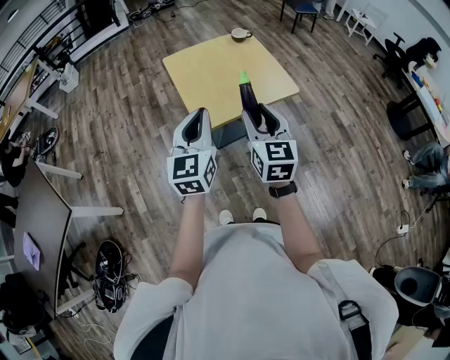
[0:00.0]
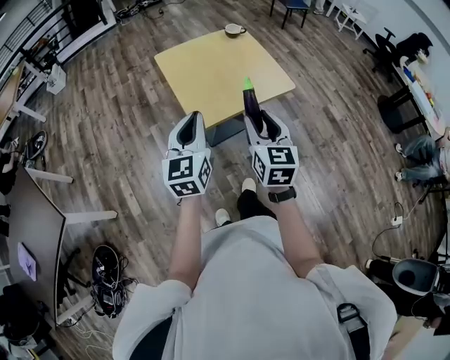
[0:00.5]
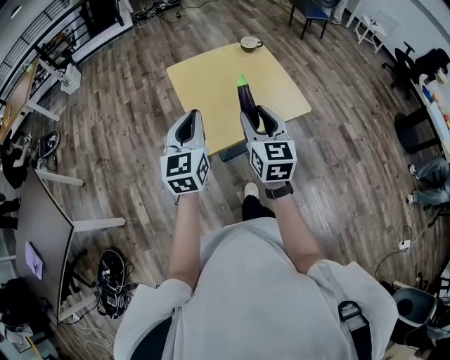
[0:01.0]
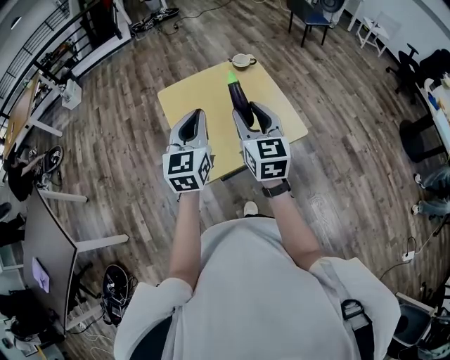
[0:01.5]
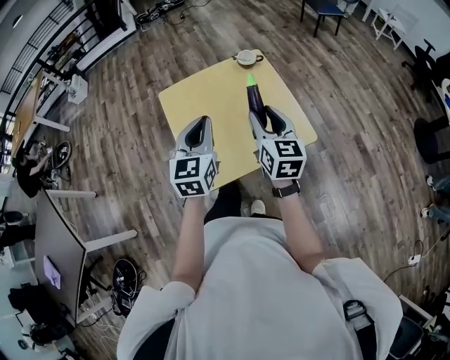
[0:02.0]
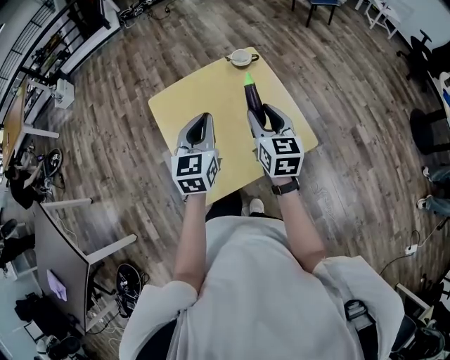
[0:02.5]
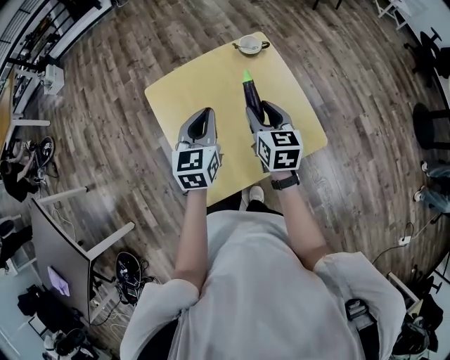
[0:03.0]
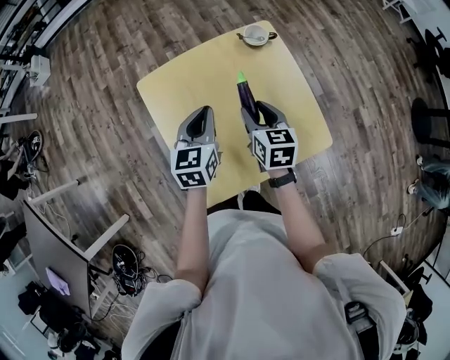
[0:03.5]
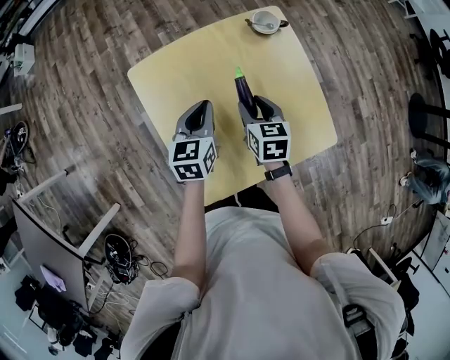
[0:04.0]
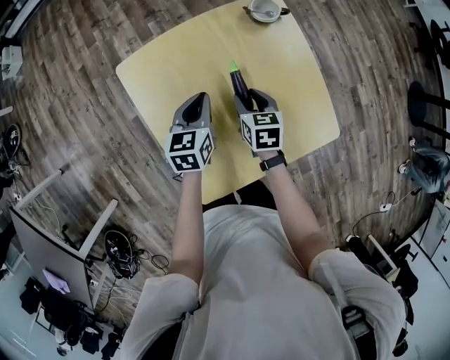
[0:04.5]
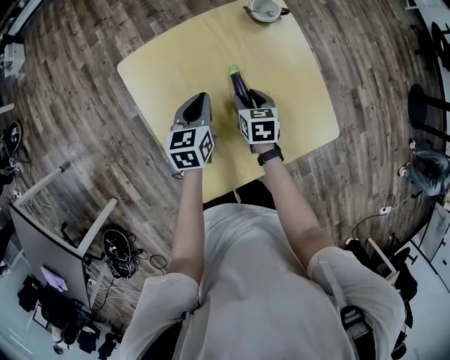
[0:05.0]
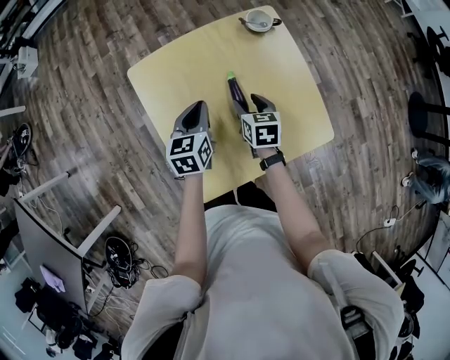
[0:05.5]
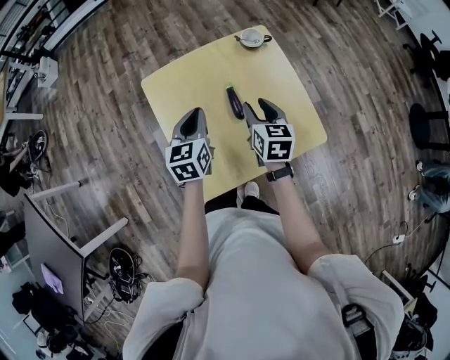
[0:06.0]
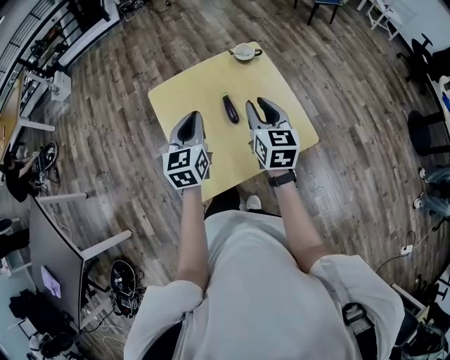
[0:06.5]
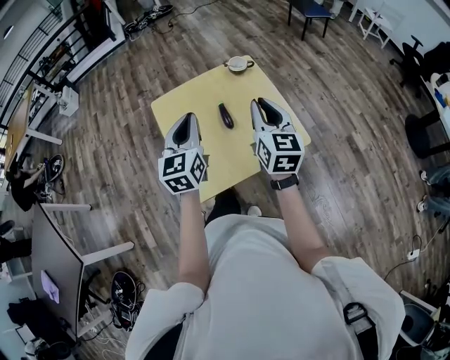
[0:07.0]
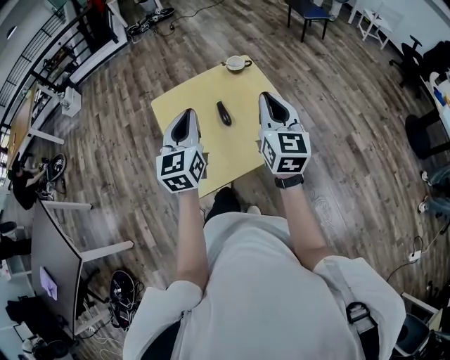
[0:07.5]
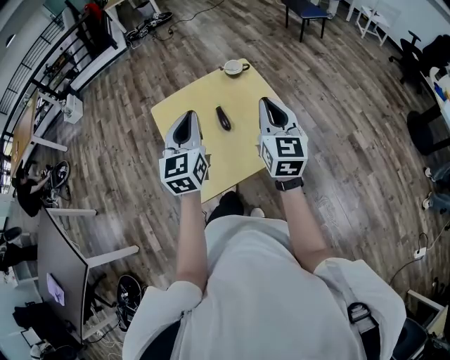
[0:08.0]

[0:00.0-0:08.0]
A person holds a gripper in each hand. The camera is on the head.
0:00.0 to 0:02.0: The grippers both shift forward by roughly 30 cm.
0:02.0 to 0:04.0: The right gripper moves downward, forward and to the left, some 30 cm, and angles its fingers downward, by approximately 30 degrees, while the left gripper goes some 30 cm downward and forward, and changes its angle by some 30 degrees.
0:04.0 to 0:06.0: The right gripper goes some 10 cm upward. The left gripper heads upward and backward, covering approximately 10 cm.
0:06.0 to 0:08.0: The right gripper heads upward, backward and to the right, covering about 25 cm, swivels some 30 degrees, and closes its fingers, while the left gripper goes some 20 cm upward and backward, and changes its angle by about 20 degrees.

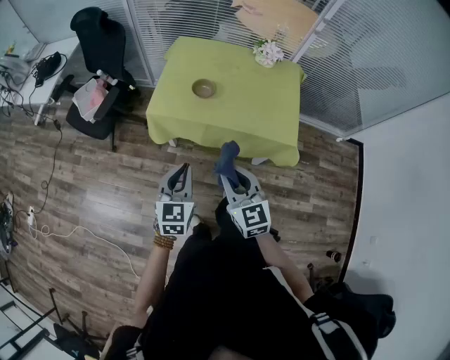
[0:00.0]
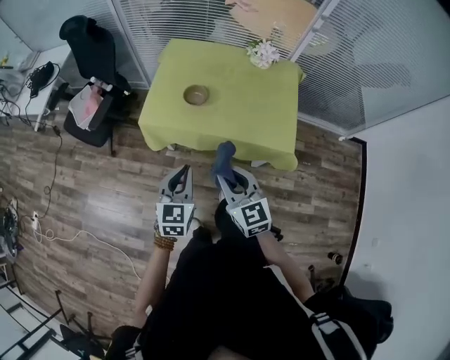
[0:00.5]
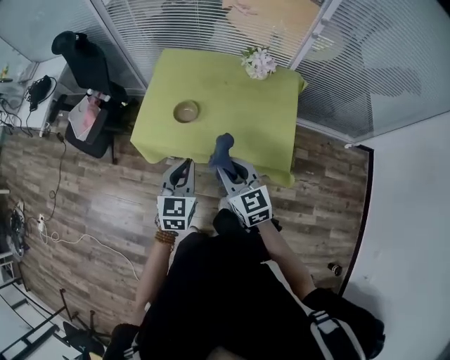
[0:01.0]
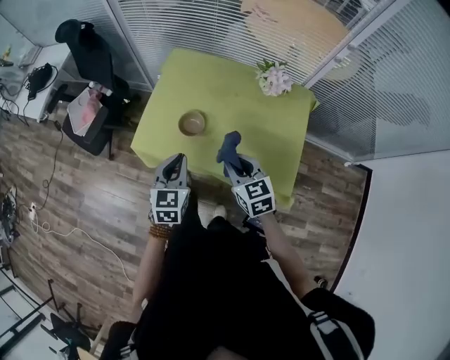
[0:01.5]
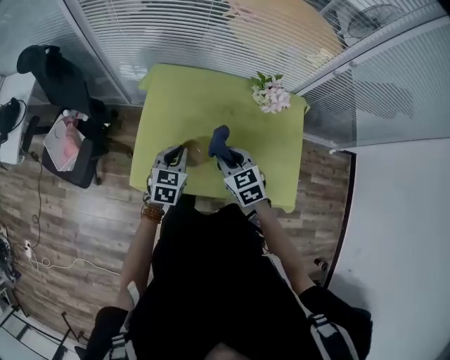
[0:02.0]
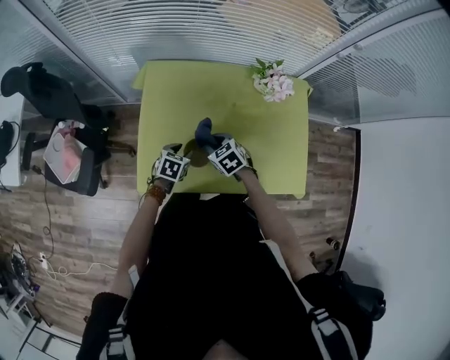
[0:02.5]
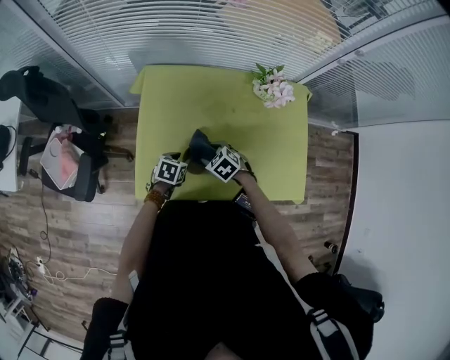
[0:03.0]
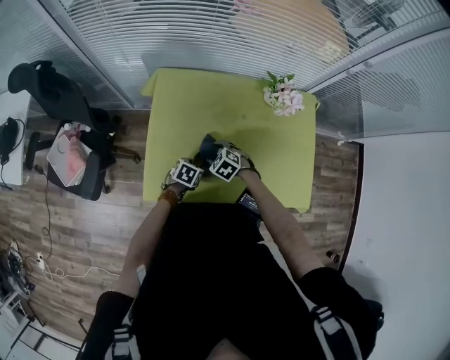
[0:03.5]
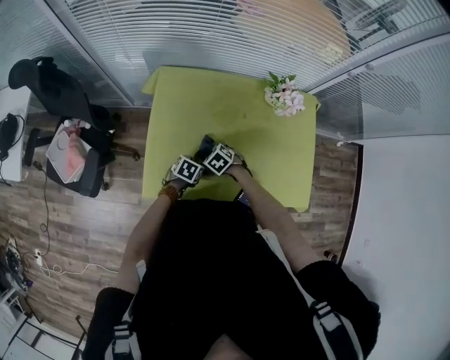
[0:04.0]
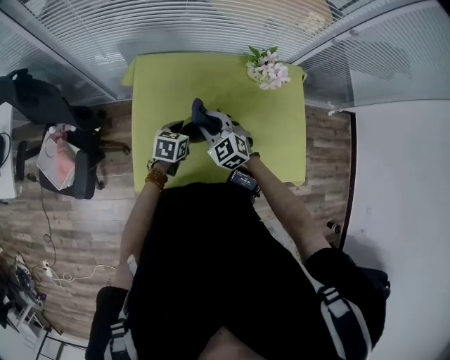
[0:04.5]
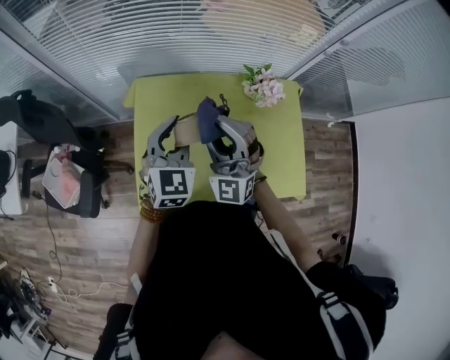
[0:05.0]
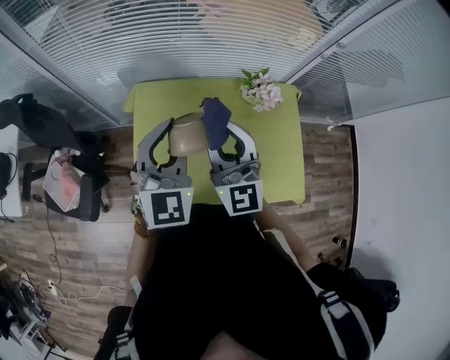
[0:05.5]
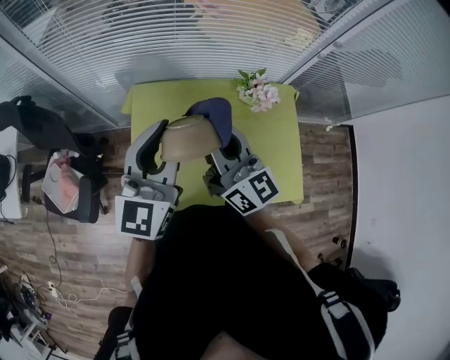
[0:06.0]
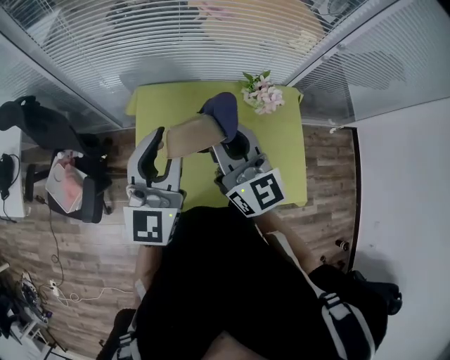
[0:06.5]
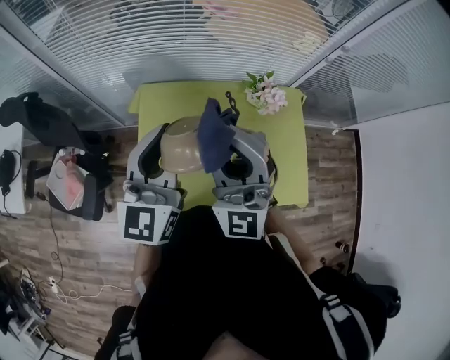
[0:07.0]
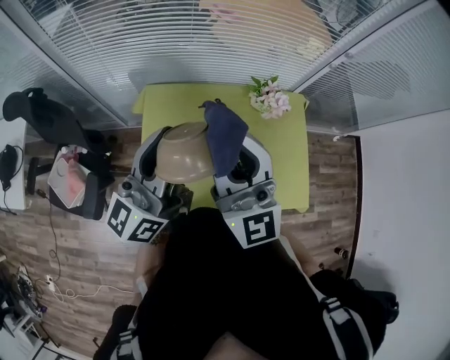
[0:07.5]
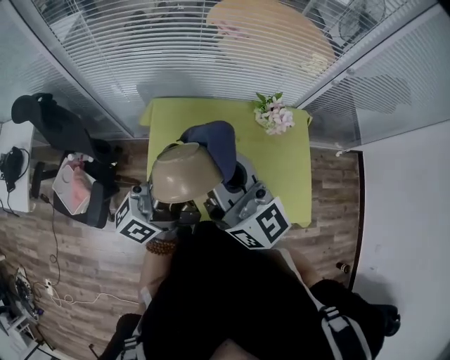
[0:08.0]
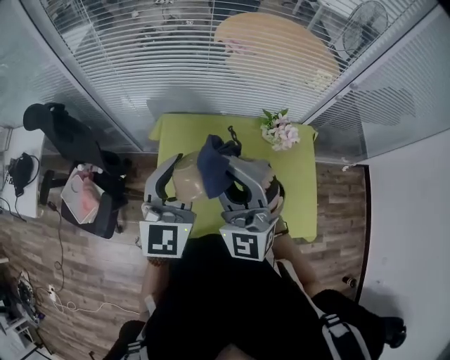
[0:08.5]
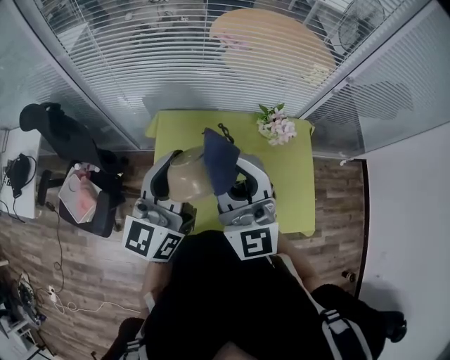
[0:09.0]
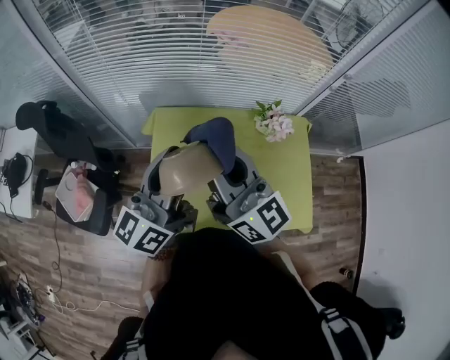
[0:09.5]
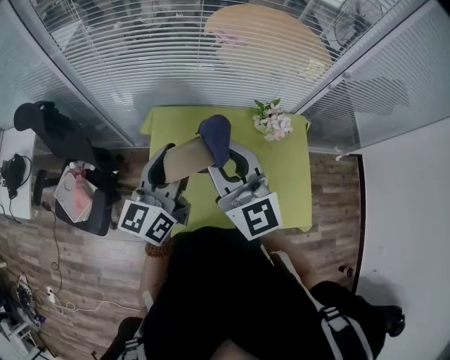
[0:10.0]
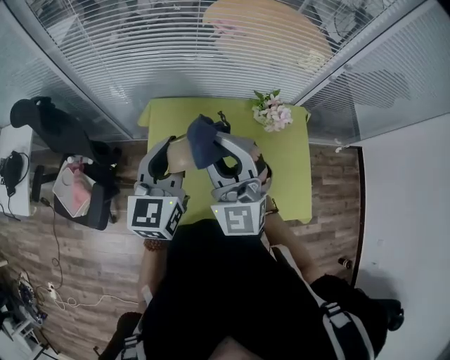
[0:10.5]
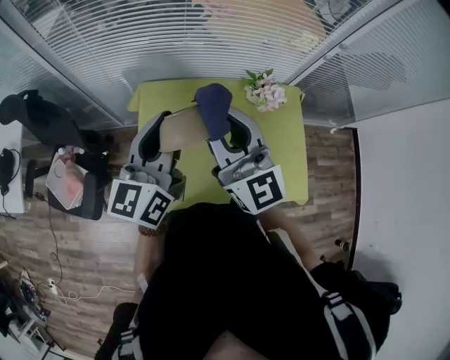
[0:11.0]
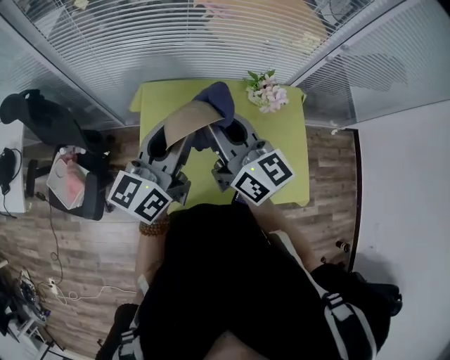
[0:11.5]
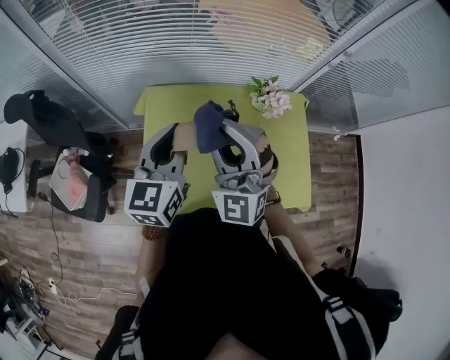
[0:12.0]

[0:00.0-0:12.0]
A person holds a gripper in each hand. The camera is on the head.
0:00.0 to 0:02.0: The pair of grippers is taken forward, some 40 cm. The right gripper swivels about 20 degrees.
0:02.0 to 0:04.0: The grippers both shift downward by some 25 cm. The left gripper changes its angle by roughly 40 degrees, and opens up. Meanwhile the right gripper rotates about 30 degrees, and opens, then closes again.
0:04.0 to 0:06.0: The two grippers go roughly 50 cm upward. The left gripper tilts its fingers approximately 70 degrees upward. Meanwhile the right gripper tips its fingers upward by about 80 degrees.
0:06.0 to 0:08.0: The left gripper changes place by approximately 5 cm, and rolls counterclockwise, seen from behind, by roughly 50 degrees; the right gripper travels upward and to the left by roughly 10 cm.
0:08.0 to 0:10.0: The left gripper is displaced downward by some 5 cm, turns by roughly 40 degrees, and opens up. Meanwhile the right gripper turns by about 30 degrees.
0:10.0 to 0:12.0: The left gripper swivels approximately 20 degrees, and closes its fingers, while the right gripper rotates around the line of its fingers by about 40 degrees, counterclockwise from behind.

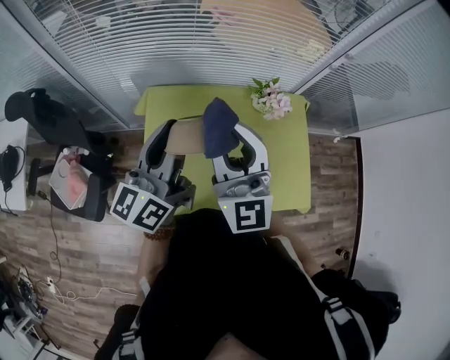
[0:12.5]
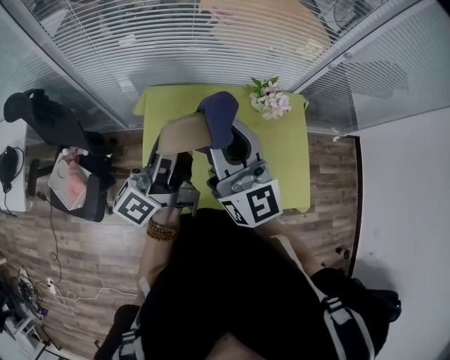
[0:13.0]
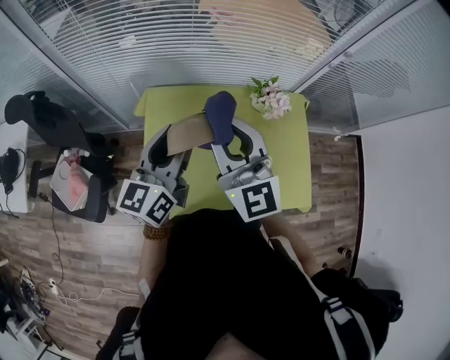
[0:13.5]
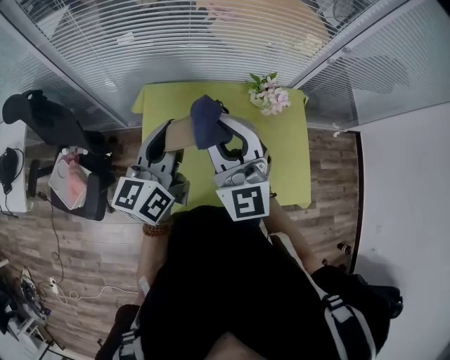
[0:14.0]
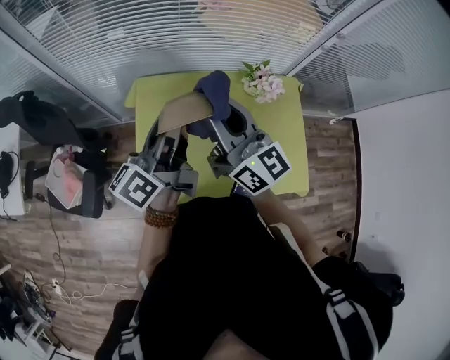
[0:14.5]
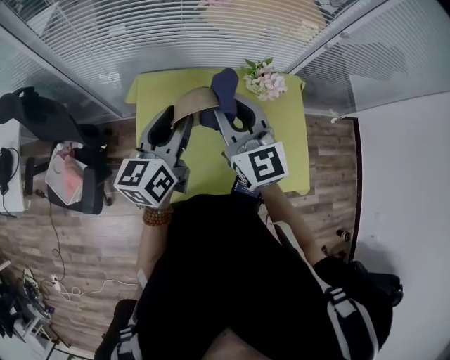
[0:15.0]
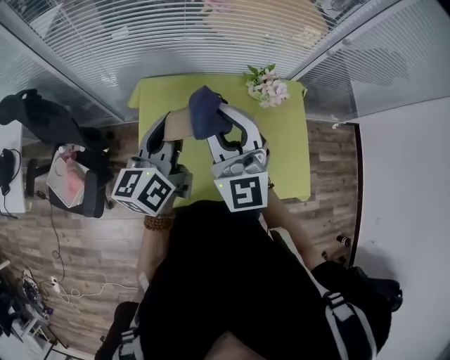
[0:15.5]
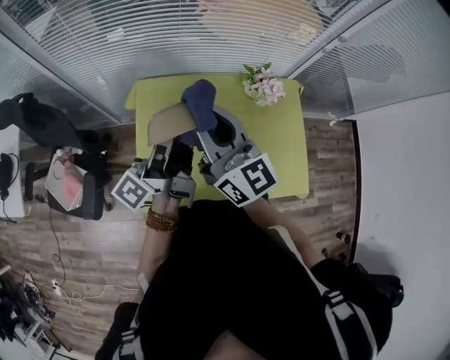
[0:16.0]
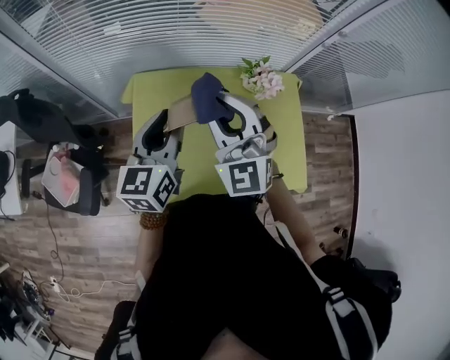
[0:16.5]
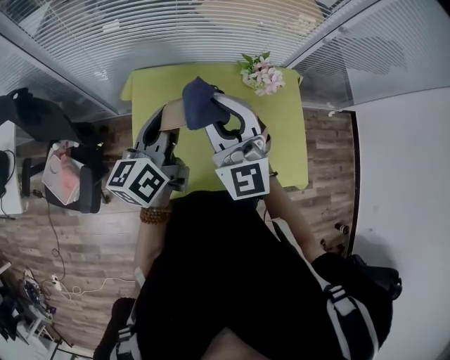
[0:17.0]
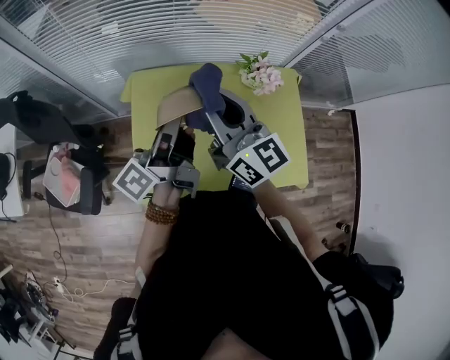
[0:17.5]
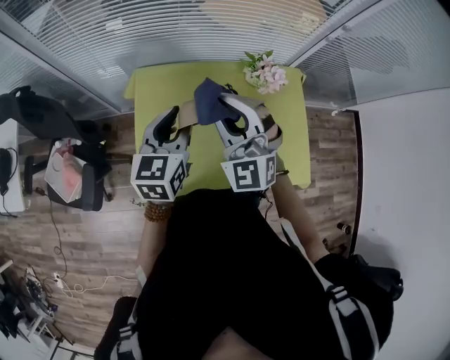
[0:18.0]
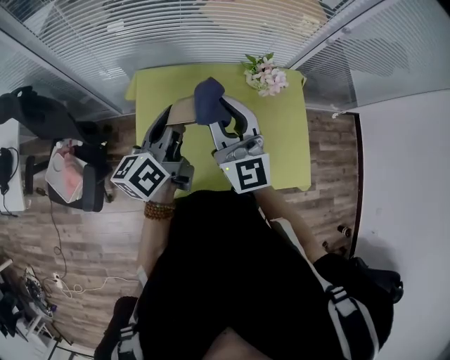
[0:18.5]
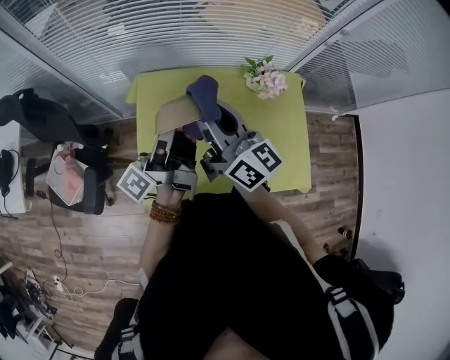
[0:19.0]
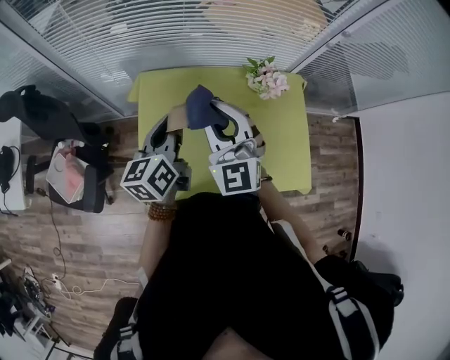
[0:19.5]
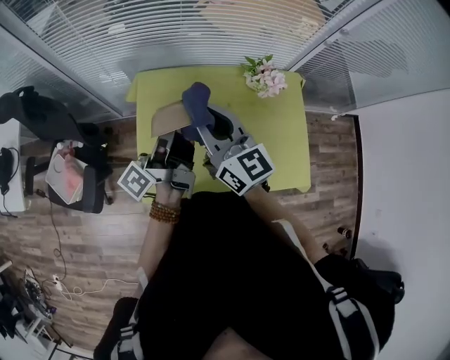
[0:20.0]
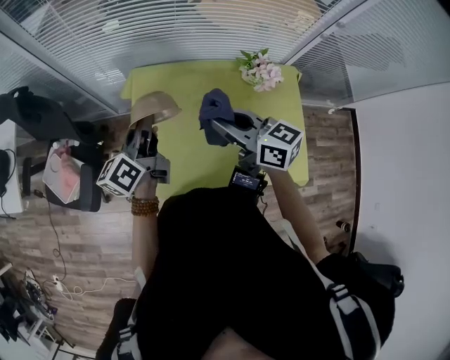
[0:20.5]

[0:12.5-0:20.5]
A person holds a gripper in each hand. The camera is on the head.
0:12.5 to 0:14.5: The left gripper rotates roughly 20 degrees, and opens, then closes once more. The right gripper shifts by about 5 cm, and rolls clockwise, seen from behind, by about 40 degrees.
0:14.5 to 0:16.5: The right gripper rolls counterclockwise, seen from behind, by some 60 degrees; the left gripper turns by about 40 degrees.
0:16.5 to 0:18.5: The right gripper changes its angle by some 40 degrees, while the left gripper changes its angle by about 30 degrees.
0:18.5 to 0:20.5: The right gripper is displaced downward by about 10 cm, and rotates some 50 degrees. Meanwhile the left gripper goes approximately 5 cm to the left.
